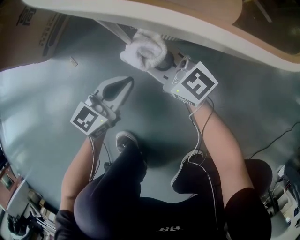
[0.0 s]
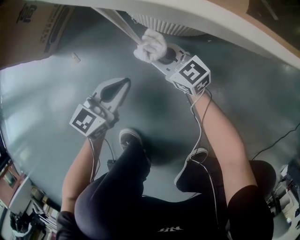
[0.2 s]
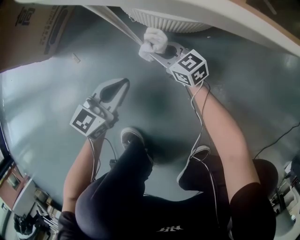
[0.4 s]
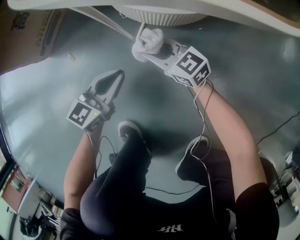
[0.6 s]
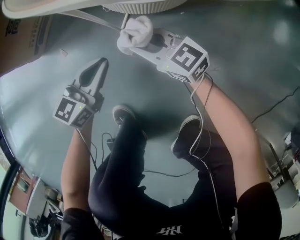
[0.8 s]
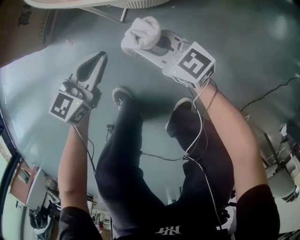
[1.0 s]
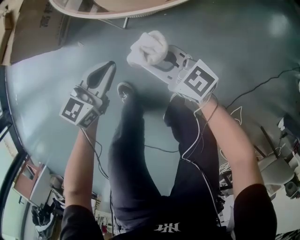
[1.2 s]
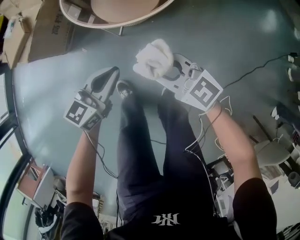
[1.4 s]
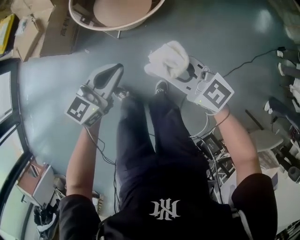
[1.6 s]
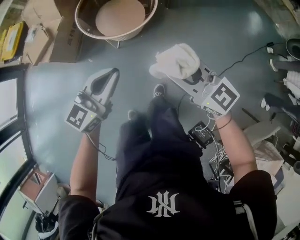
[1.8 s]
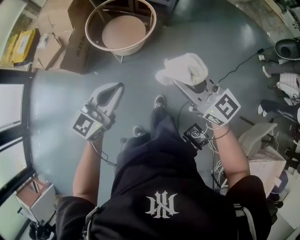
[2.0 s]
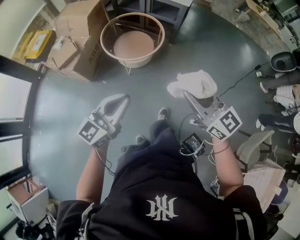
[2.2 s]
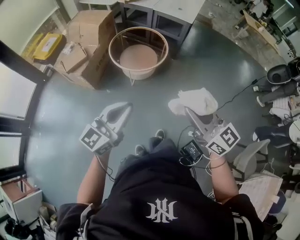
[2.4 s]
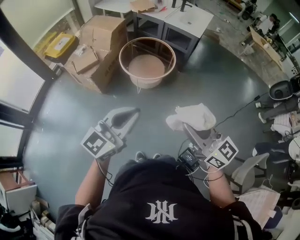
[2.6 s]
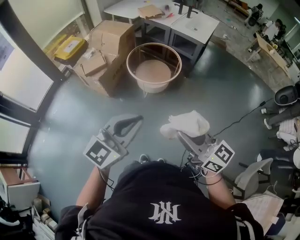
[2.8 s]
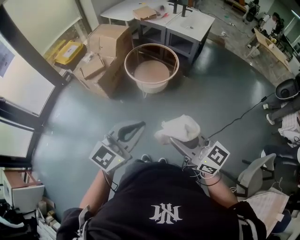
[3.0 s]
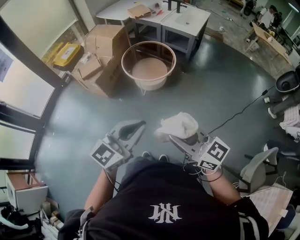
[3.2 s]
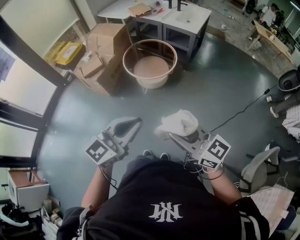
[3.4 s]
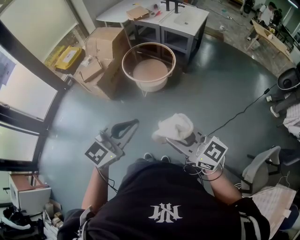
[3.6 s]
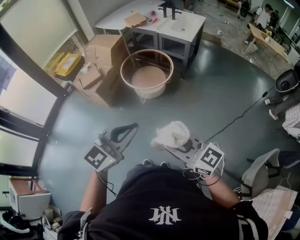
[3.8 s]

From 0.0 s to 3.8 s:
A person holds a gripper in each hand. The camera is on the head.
From 0.0 s to 1.2 s: The left gripper shifts about 30 cm upward. The right gripper goes about 30 cm upward and backward.
From 1.2 s to 2.6 s: The grippers both shift upward and backward by about 80 cm. The right gripper changes its angle by approximately 30 degrees. Meanwhile the left gripper swivels approximately 30 degrees.
From 2.6 s to 3.8 s: The right gripper heads backward, covering some 10 cm; the left gripper heads to the right and backward, covering some 10 cm.

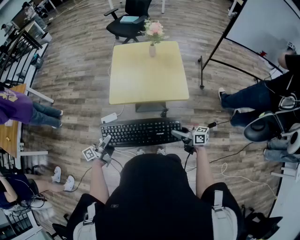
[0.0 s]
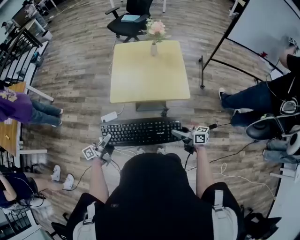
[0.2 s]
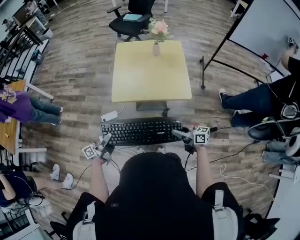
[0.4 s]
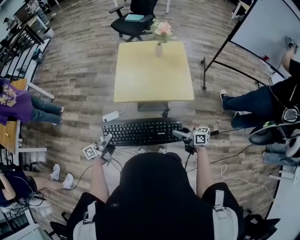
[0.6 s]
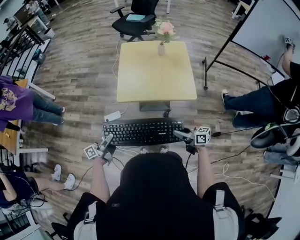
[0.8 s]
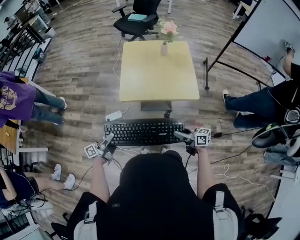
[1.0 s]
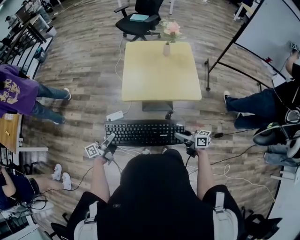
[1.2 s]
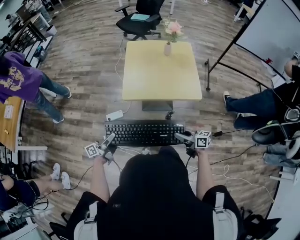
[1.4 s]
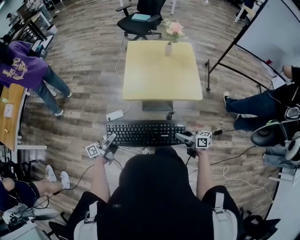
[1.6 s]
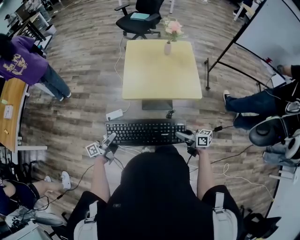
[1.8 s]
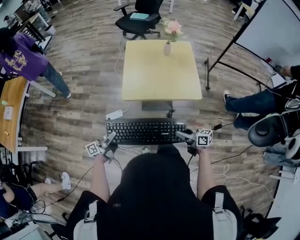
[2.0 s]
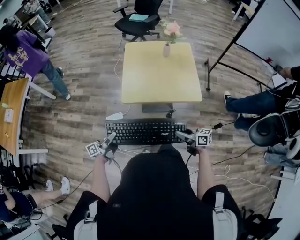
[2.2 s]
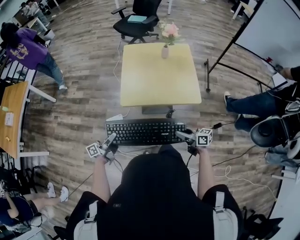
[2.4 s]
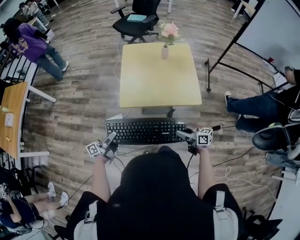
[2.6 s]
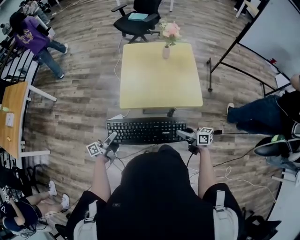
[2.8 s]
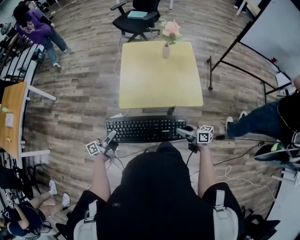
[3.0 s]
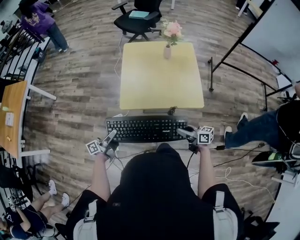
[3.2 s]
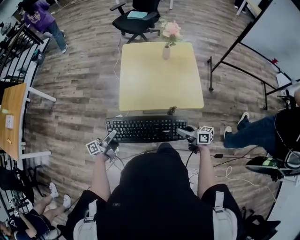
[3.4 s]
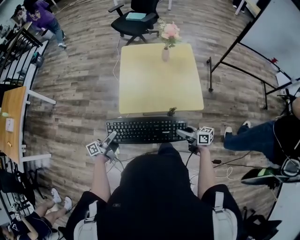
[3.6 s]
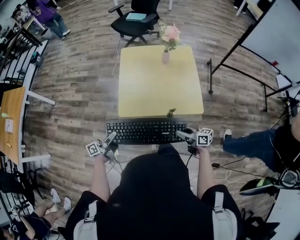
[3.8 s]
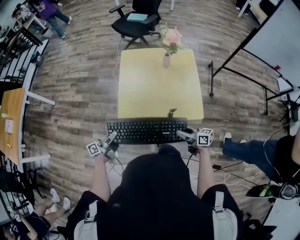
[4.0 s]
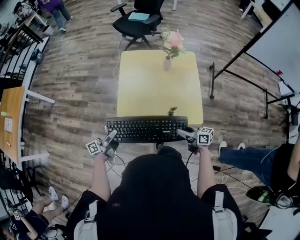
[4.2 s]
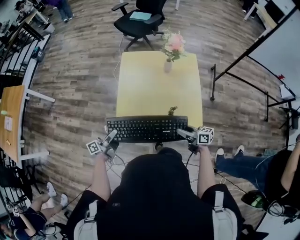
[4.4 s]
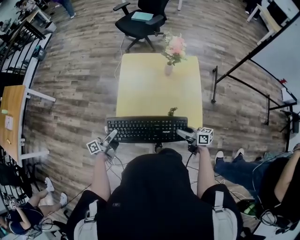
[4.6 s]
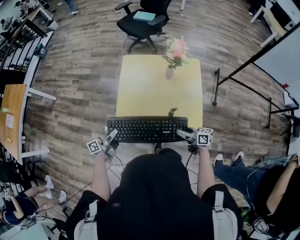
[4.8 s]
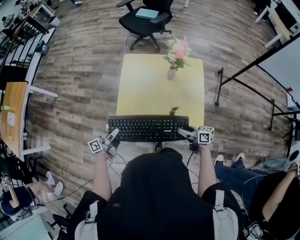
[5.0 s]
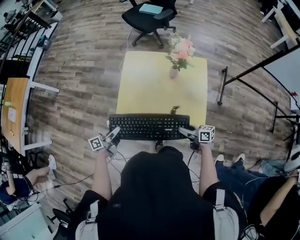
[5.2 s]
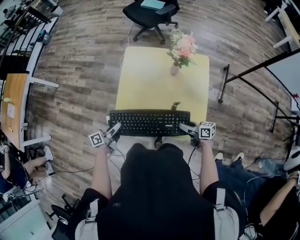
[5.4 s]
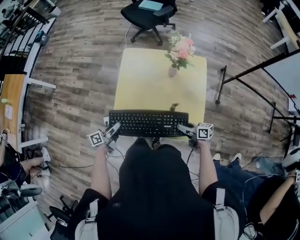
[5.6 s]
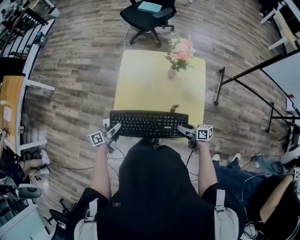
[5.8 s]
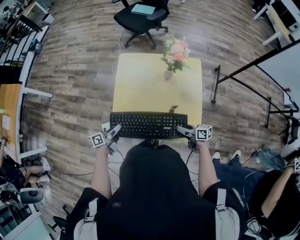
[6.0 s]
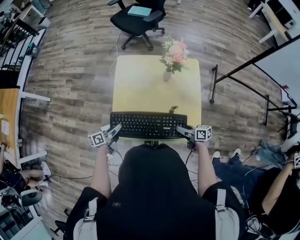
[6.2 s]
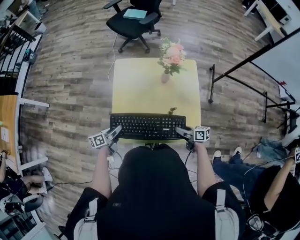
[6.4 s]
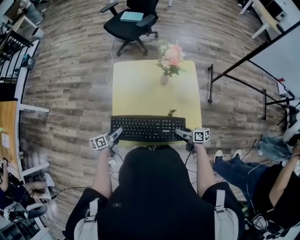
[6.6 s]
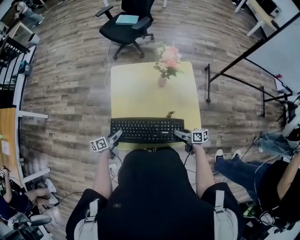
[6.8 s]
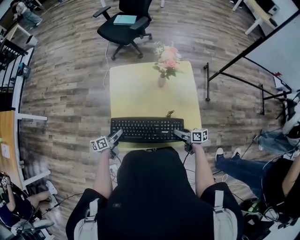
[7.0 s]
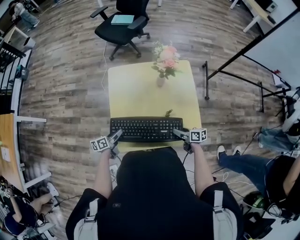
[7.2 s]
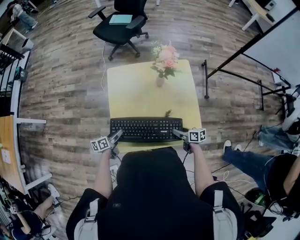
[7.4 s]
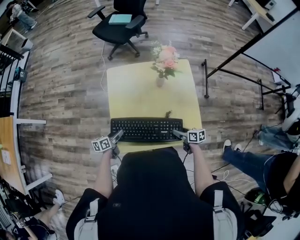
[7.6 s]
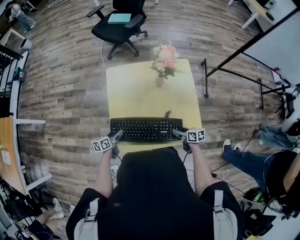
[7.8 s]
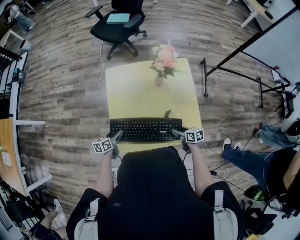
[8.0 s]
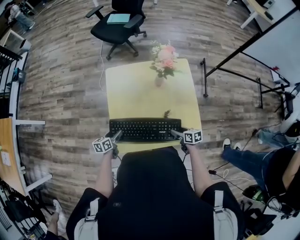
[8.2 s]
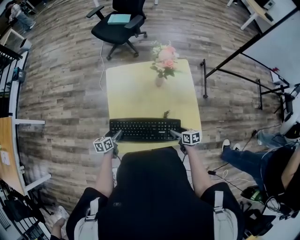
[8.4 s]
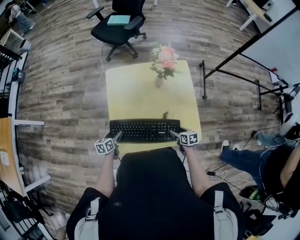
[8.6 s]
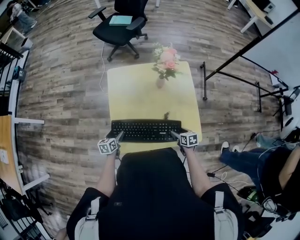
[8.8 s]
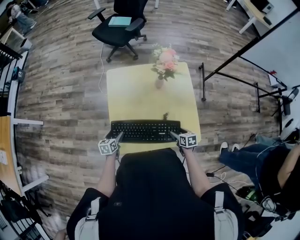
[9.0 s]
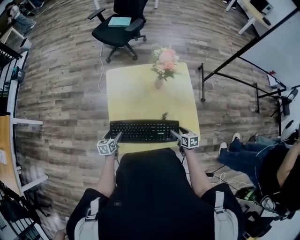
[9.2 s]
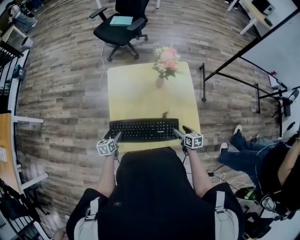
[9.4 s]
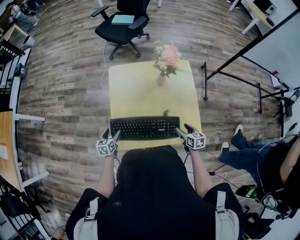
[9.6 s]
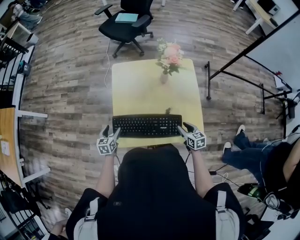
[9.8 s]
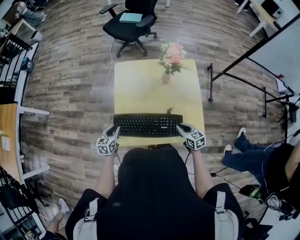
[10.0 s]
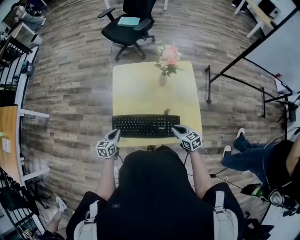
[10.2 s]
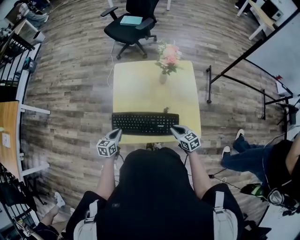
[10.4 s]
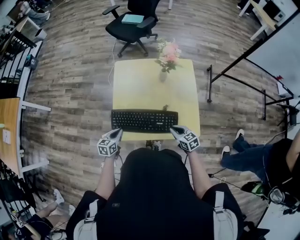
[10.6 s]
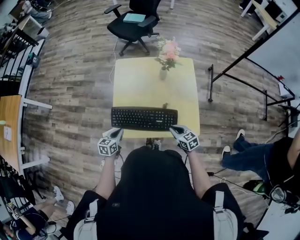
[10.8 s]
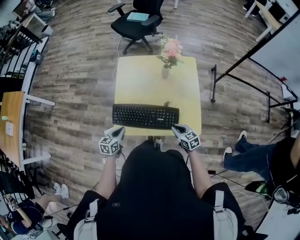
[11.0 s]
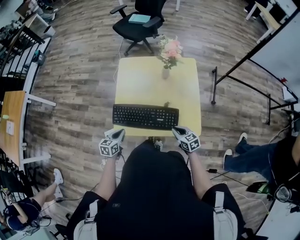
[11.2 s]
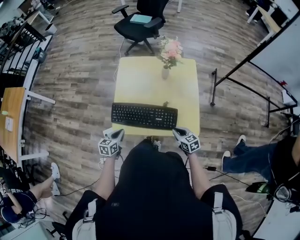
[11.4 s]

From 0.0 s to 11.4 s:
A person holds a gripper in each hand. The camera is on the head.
From 0.0 s to 1.4 s: Both grippers move to the left, approximately 10 cm.
From 1.4 s to 2.8 s: Both grippers travel together forward, roughly 10 cm.
From 2.8 s to 4.2 s: Both grippers move forward, approximately 15 cm.
From 4.2 s to 5.6 s: The right gripper is displaced forward, downward and to the right by some 20 cm, while the left gripper shifts some 15 cm forward, to the right and downward.
From 5.6 s to 7.2 s: The right gripper ends up approximately 5 cm from where it was, and turns by approximately 20 degrees. Meanwhile the left gripper moves forward and downward, approximately 10 cm, and changes its angle by approximately 20 degrees.
From 7.2 s to 8.6 s: The right gripper turns by roughly 30 degrees. The left gripper changes its angle by about 20 degrees.
From 8.6 s to 10.0 s: Both grippers travel together upward, about 5 cm. The right gripper rotates some 20 degrees, and closes up, while the left gripper closes.
From 10.0 s to 11.4 s: The left gripper is displaced backward and to the right by roughly 15 cm. The right gripper travels backward by approximately 10 cm.

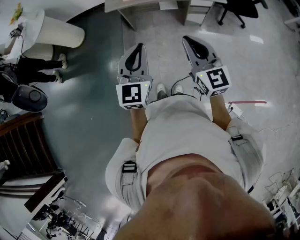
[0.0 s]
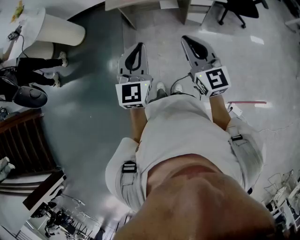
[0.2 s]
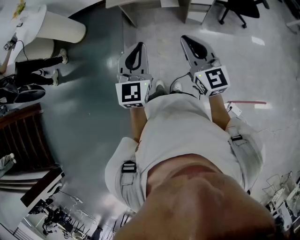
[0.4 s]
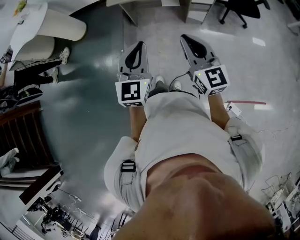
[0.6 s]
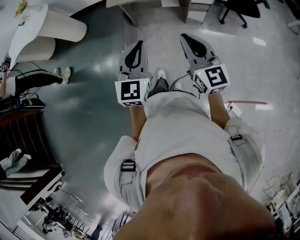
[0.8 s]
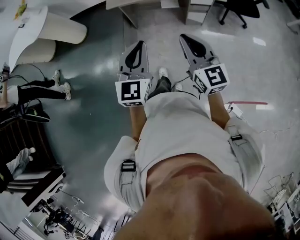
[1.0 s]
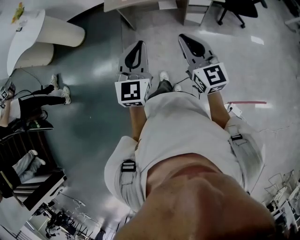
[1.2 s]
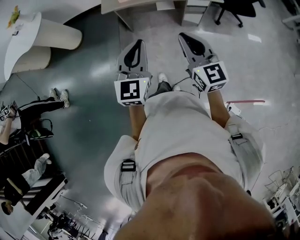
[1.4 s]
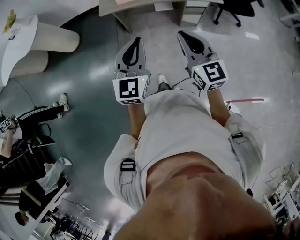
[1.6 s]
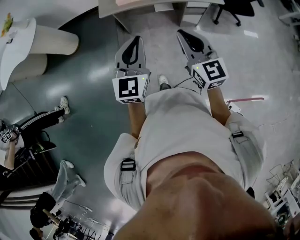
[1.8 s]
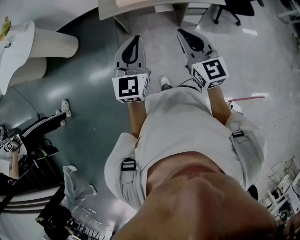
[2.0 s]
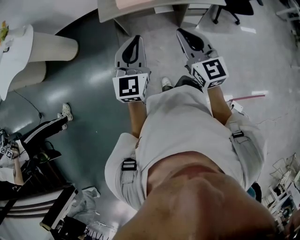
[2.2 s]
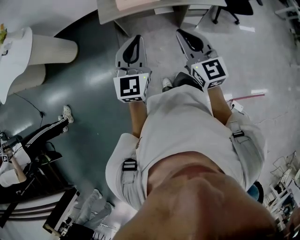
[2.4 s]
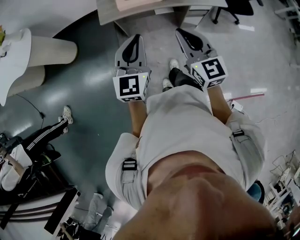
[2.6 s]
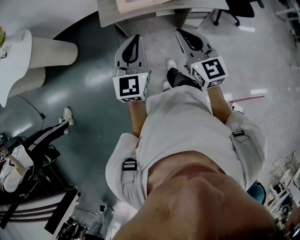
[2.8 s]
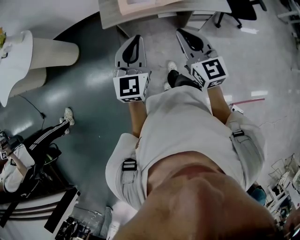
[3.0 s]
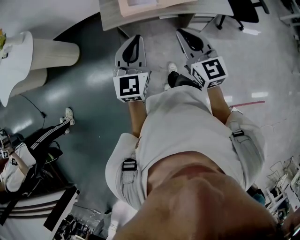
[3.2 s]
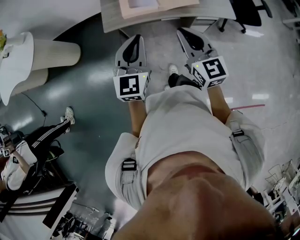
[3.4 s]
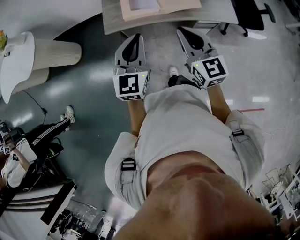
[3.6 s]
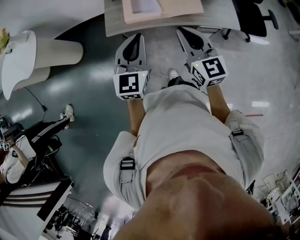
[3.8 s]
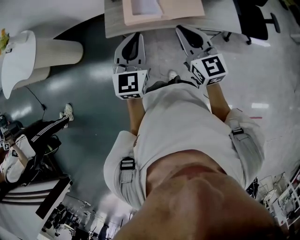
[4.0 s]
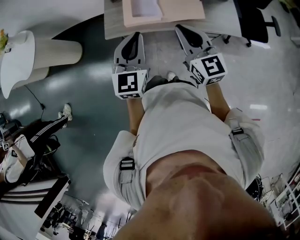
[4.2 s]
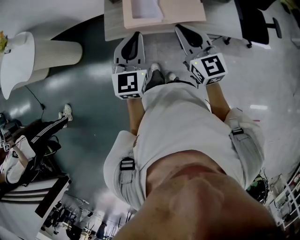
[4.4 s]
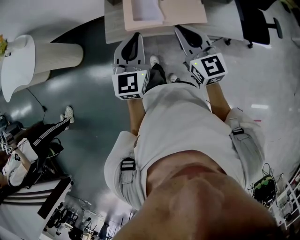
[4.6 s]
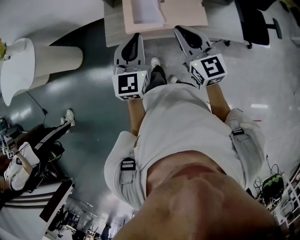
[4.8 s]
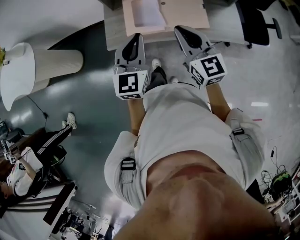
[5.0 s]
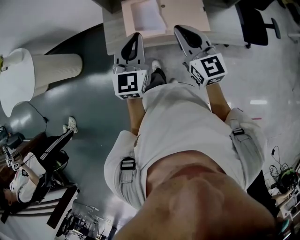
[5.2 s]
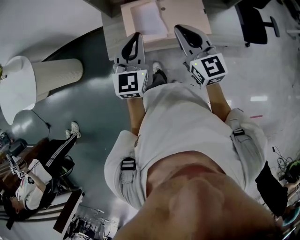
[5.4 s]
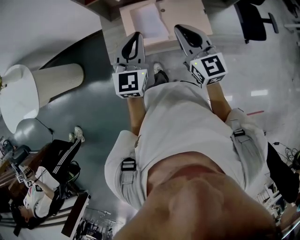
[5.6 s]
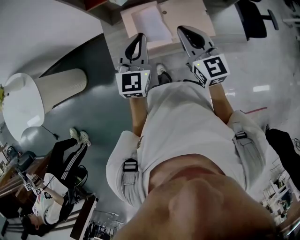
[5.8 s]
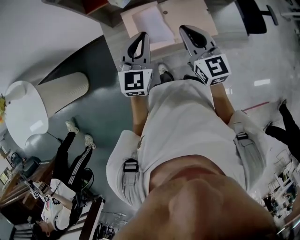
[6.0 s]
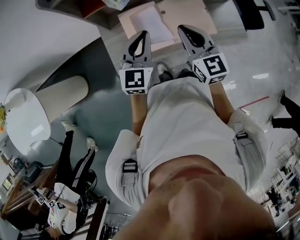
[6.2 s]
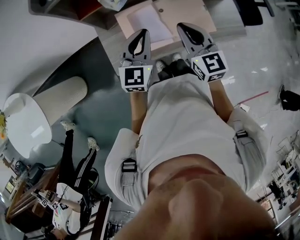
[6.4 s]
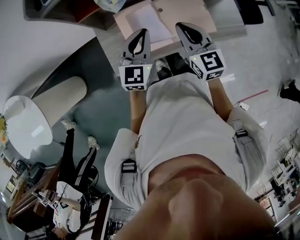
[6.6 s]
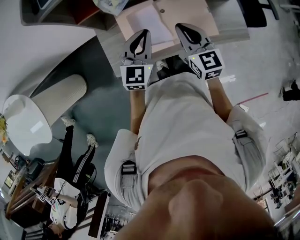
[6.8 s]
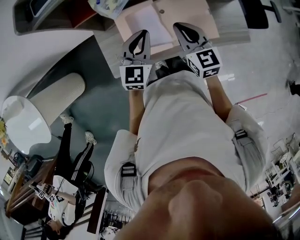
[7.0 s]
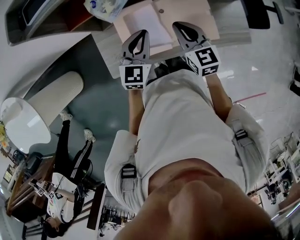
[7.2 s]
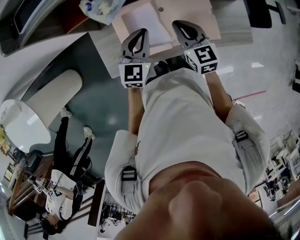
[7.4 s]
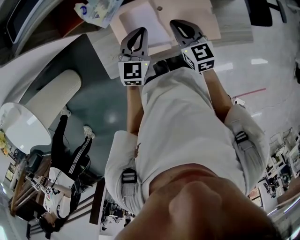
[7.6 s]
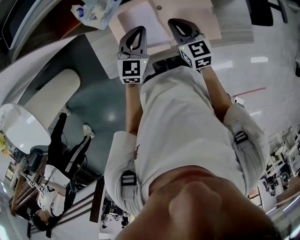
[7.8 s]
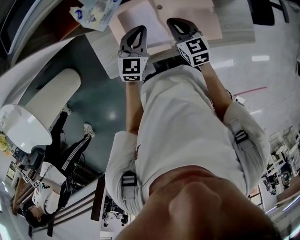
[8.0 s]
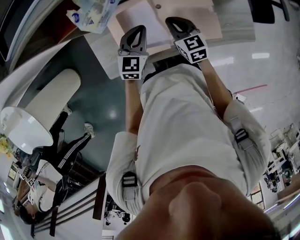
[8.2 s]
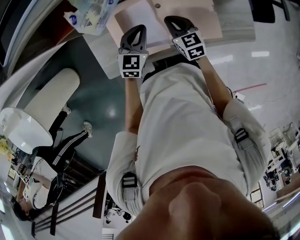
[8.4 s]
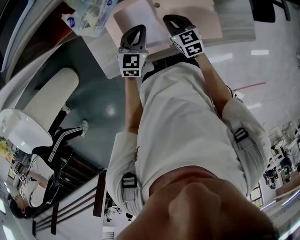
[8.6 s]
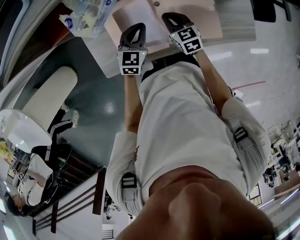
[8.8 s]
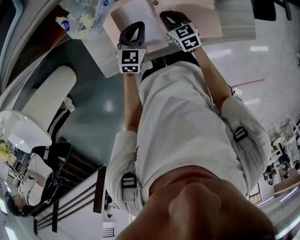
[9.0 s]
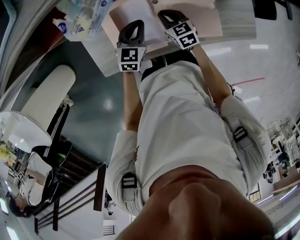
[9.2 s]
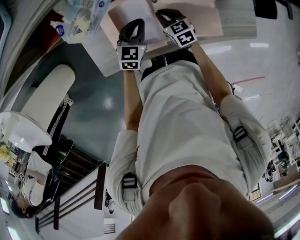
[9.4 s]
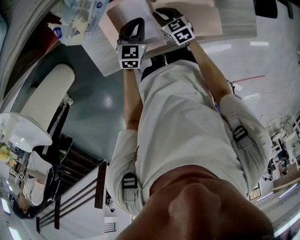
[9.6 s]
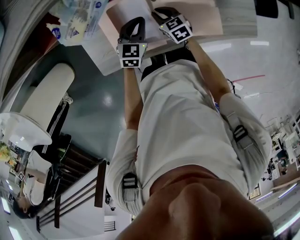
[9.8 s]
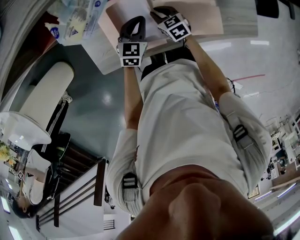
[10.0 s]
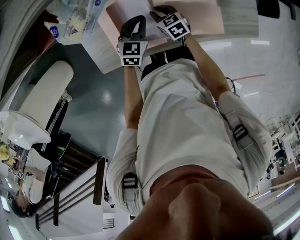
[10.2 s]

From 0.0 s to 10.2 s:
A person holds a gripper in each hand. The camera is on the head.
From 0.0 s to 1.4 s: The grippers make only small movements.
From 1.4 s to 3.0 s: The left gripper heads forward, covering some 20 cm. The right gripper heads forward and to the left, covering about 20 cm.
From 3.0 s to 4.4 s: The left gripper goes some 15 cm forward and to the right, while the right gripper travels forward by some 20 cm.
From 4.4 s to 5.8 s: Both grippers move forward, some 20 cm.
From 5.8 s to 7.2 s: Both grippers travel together forward and downward, approximately 15 cm.
From 7.2 s to 8.8 s: Both grippers travel together downward, some 20 cm.
From 8.8 s to 10.2 s: The right gripper travels downward by approximately 10 cm. Meanwhile the left gripper shifts some 5 cm downward.
